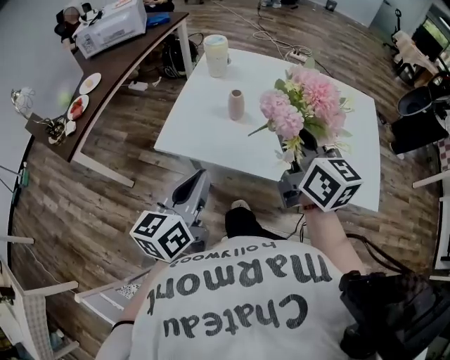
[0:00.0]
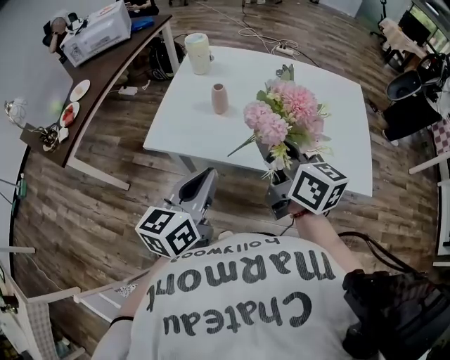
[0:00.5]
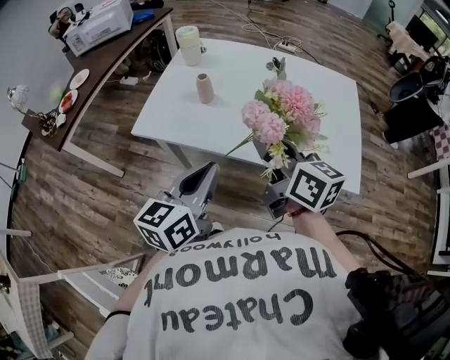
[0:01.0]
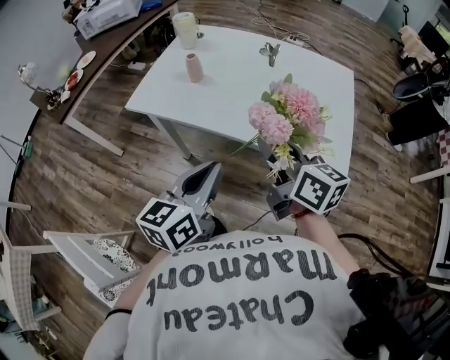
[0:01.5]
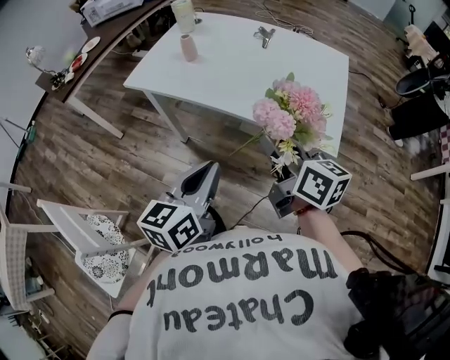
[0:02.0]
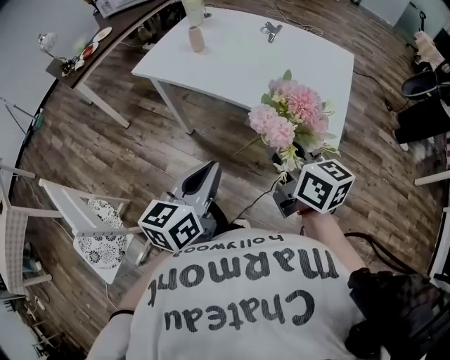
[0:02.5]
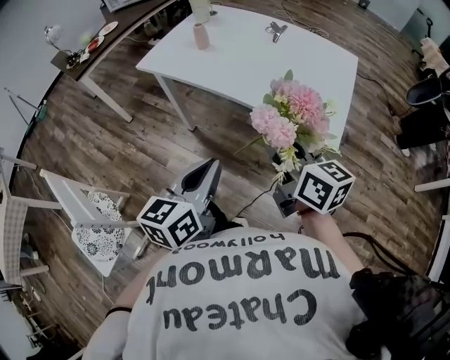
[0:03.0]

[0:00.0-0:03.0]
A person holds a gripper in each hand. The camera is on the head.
0:00.0 to 0:01.5: The left gripper goes about 25 cm to the right and backward. The right gripper travels backward, to the right and downward by approximately 25 cm.
0:01.5 to 0:03.0: The grippers both shift backward by some 10 cm.

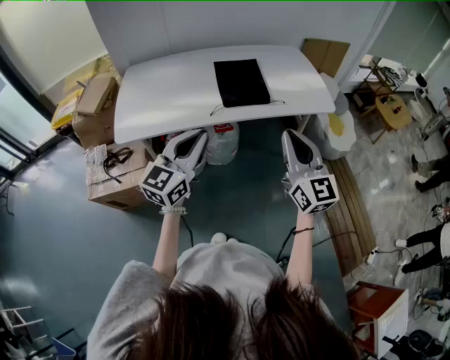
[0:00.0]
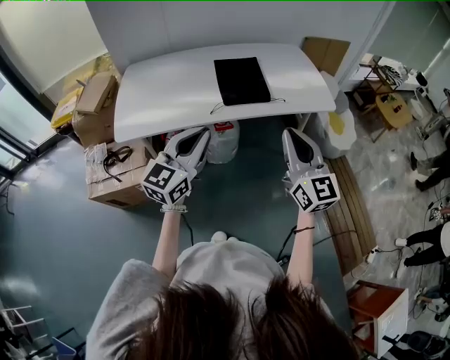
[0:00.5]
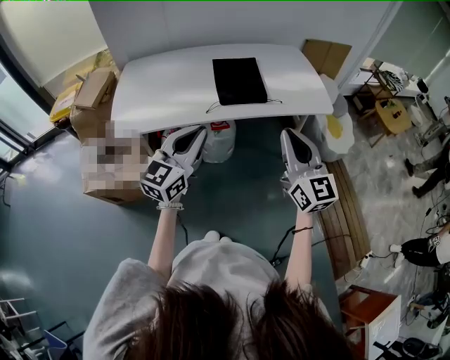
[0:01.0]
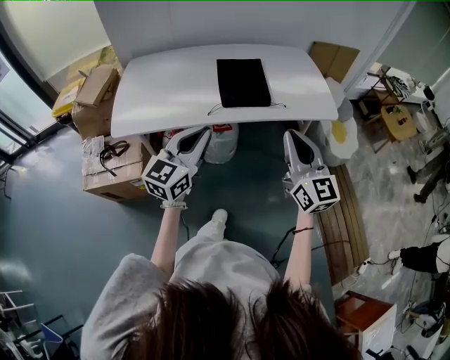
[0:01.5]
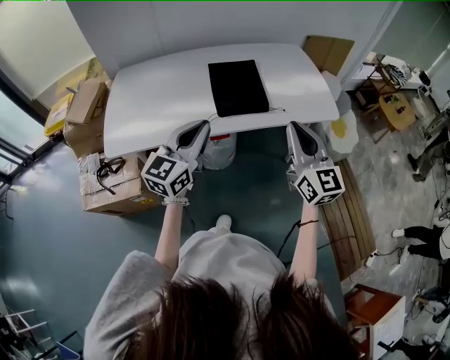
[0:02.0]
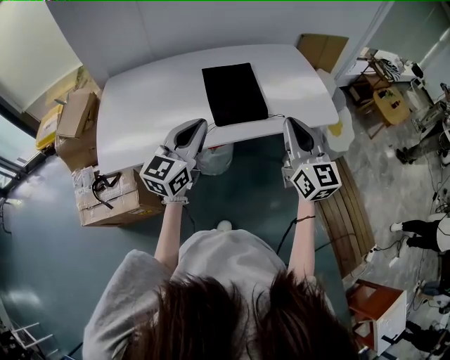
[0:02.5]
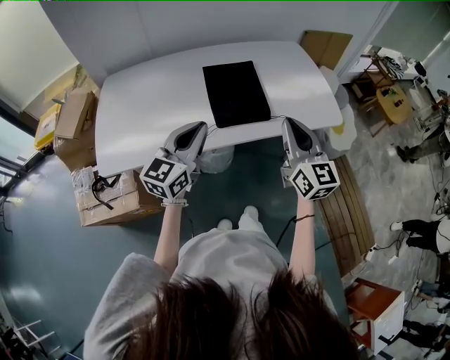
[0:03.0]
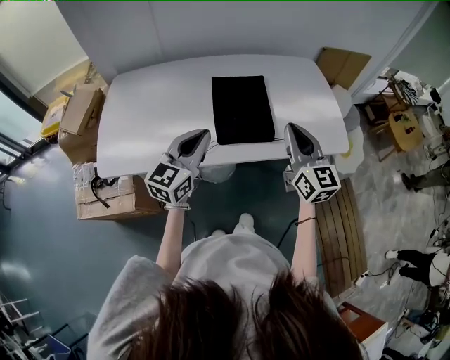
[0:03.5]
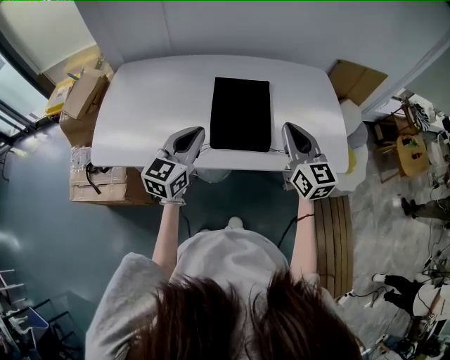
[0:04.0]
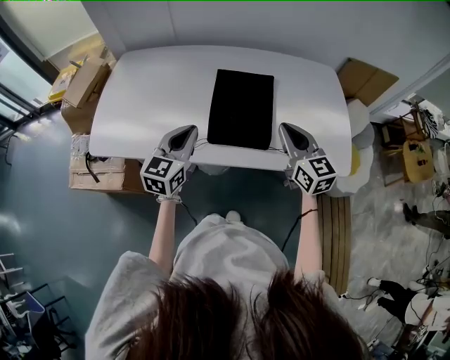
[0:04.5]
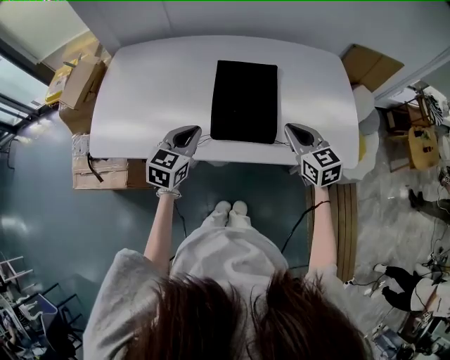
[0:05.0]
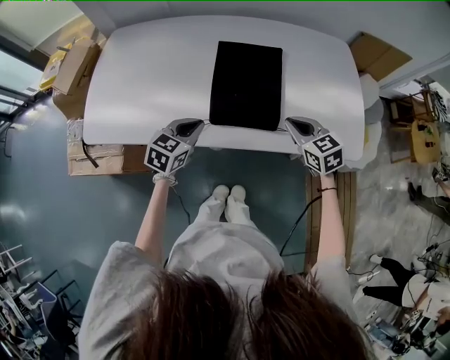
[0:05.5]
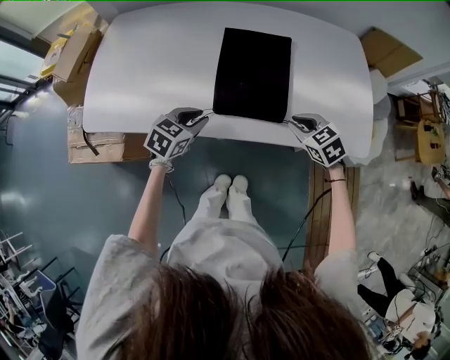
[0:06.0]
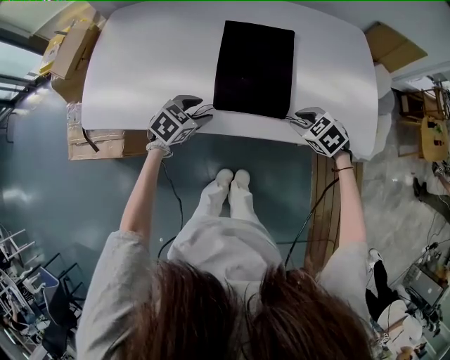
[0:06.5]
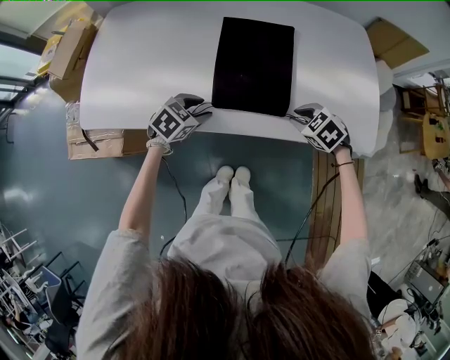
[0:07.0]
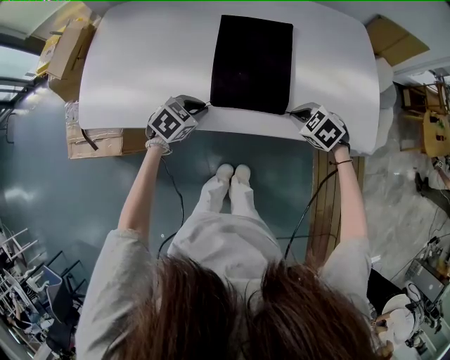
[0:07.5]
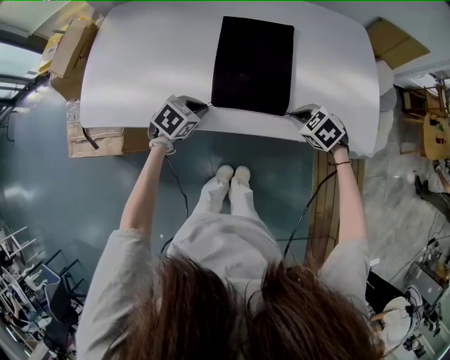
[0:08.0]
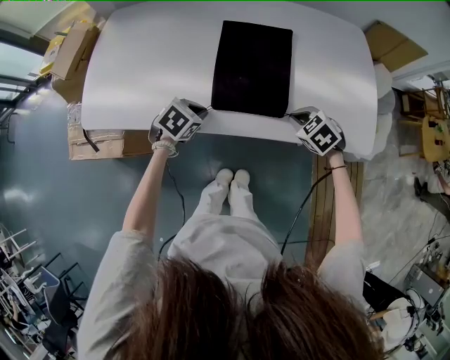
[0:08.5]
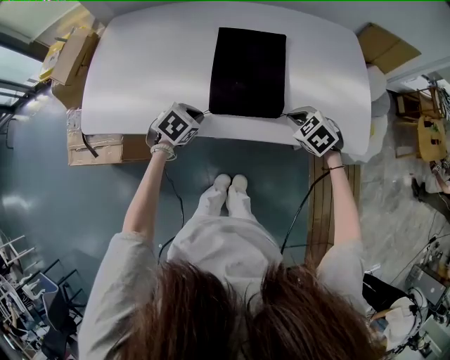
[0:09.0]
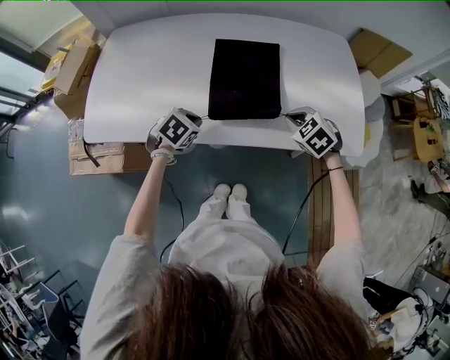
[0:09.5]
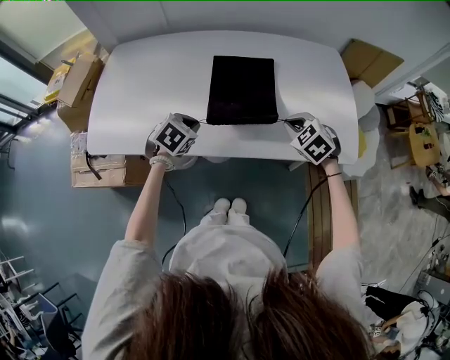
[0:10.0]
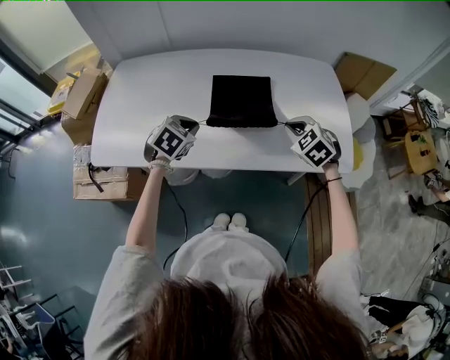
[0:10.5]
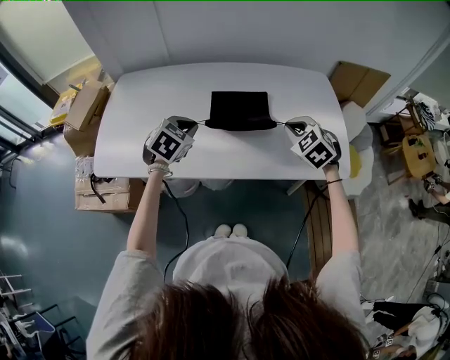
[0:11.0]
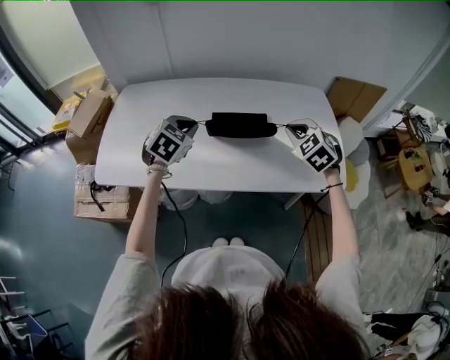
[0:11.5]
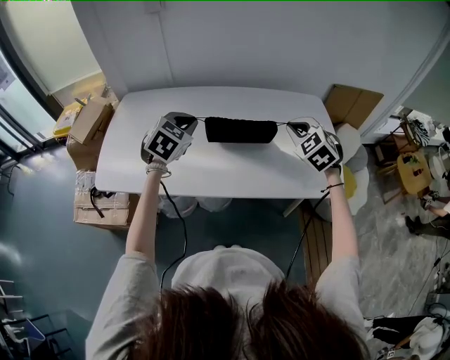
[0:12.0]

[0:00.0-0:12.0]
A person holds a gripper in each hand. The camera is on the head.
0:00.0 to 0:02.0: Both grippers move forward, approximately 10 cm.
0:02.0 to 0:04.0: Both grippers travel together forward, some 20 cm.
0:04.0 to 0:06.0: The two grippers go approximately 20 cm downward. The right gripper tilts its fingers some 50 degrees downward, while the left gripper points its fingers roughly 40 degrees further downward.
0:06.0 to 0:08.0: The left gripper goes approximately 5 cm downward, and opens, then closes again.
0:08.0 to 0:10.0: The two grippers go approximately 10 cm upward.
0:10.0 to 0:12.0: Both grippers move upward, approximately 20 cm. The right gripper swivels some 20 degrees. Meanwhile the left gripper turns by roughly 30 degrees.

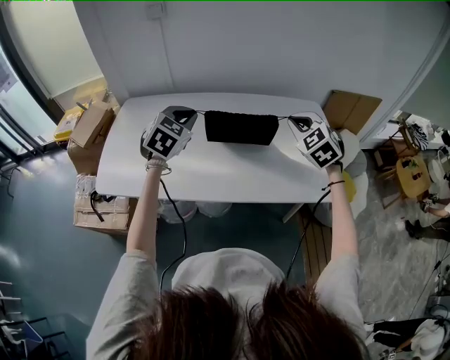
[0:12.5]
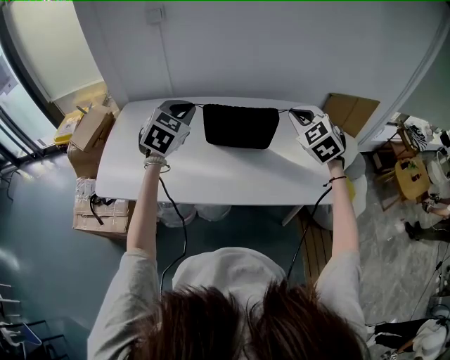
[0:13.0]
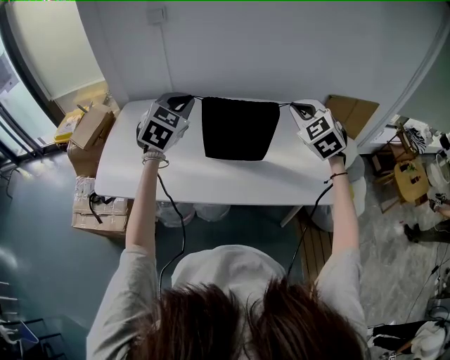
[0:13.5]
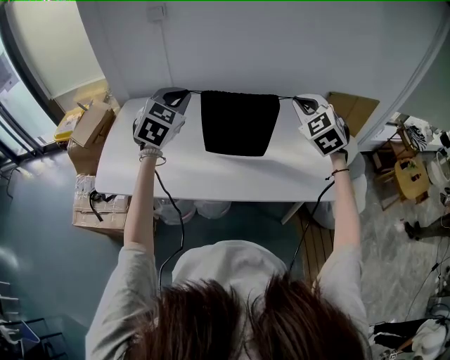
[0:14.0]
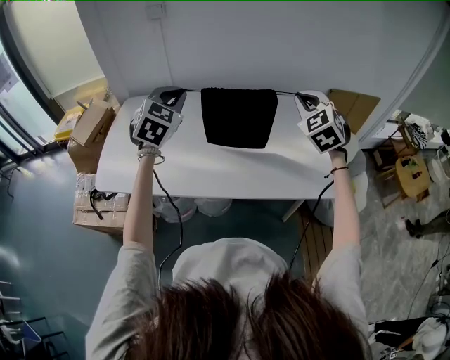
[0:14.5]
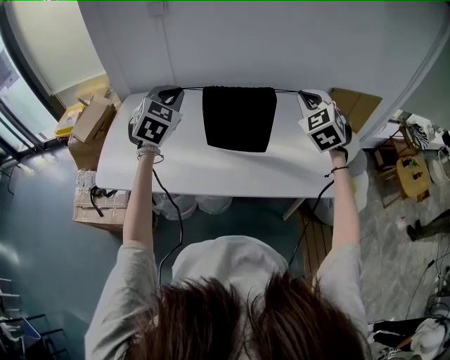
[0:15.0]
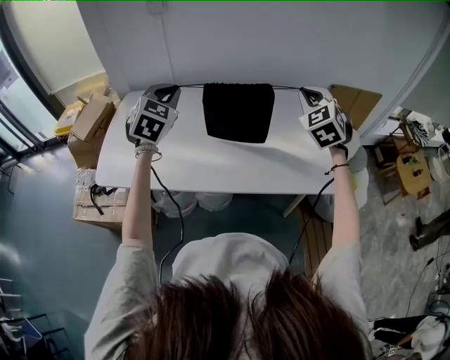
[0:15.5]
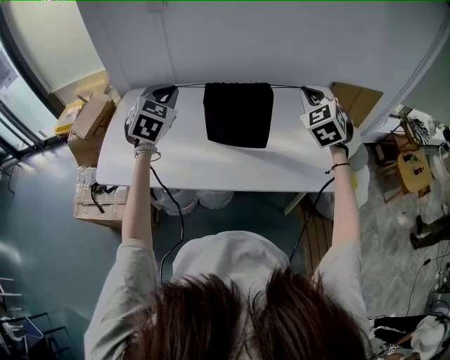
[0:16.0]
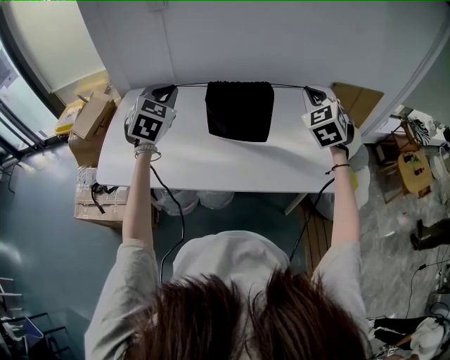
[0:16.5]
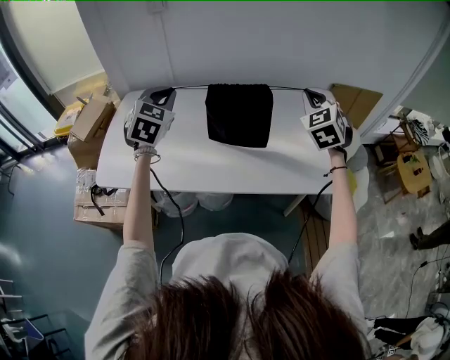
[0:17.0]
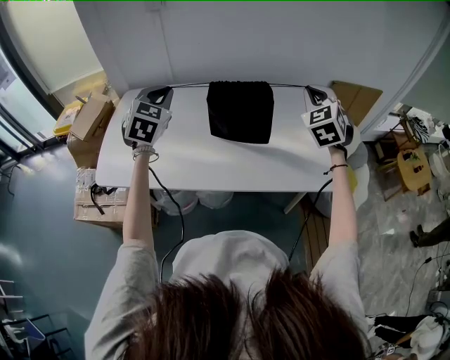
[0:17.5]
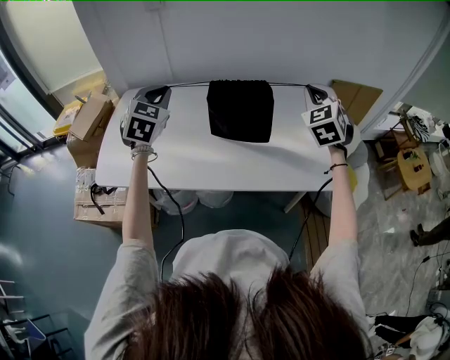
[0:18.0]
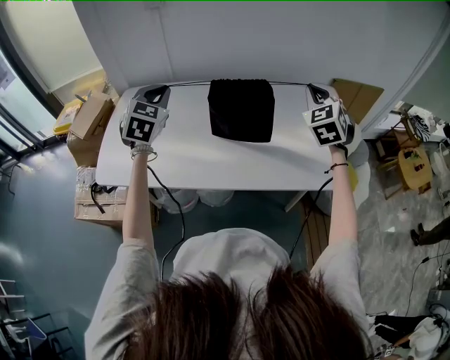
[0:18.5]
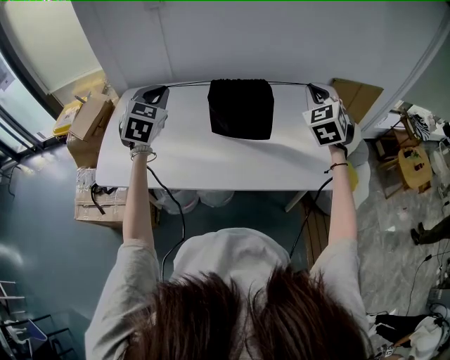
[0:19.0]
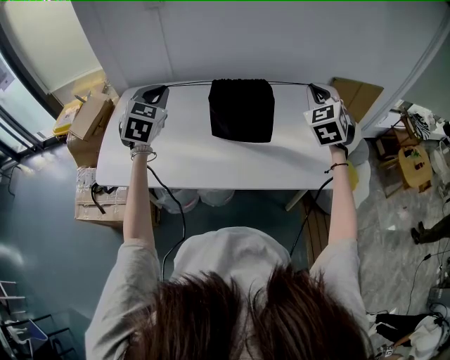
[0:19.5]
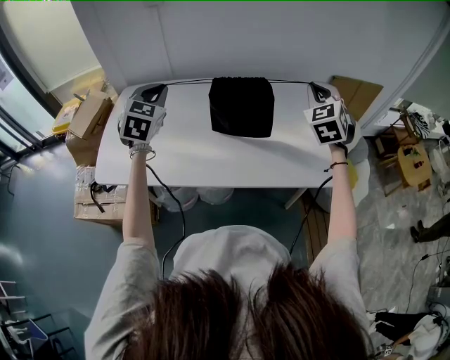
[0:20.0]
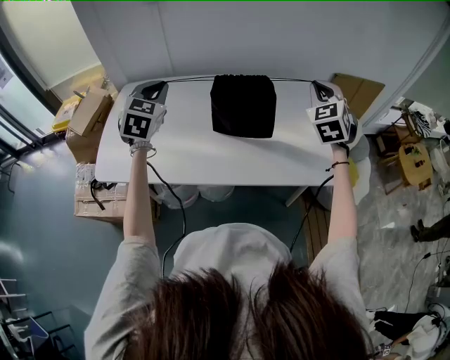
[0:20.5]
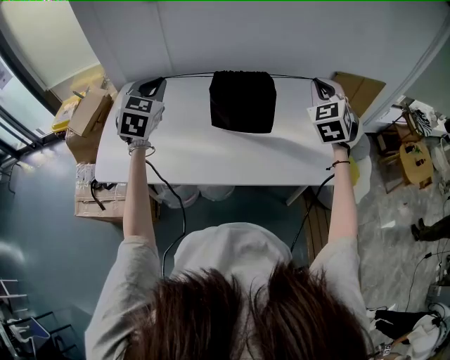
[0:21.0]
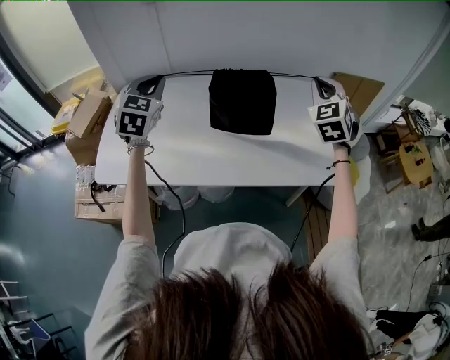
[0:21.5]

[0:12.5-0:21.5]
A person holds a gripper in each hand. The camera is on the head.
0:12.5 to 0:14.5: Both grippers travel together upward, roughly 5 cm.
0:14.5 to 0:17.0: The grippers stay close to where they were, moving slightly.
0:17.0 to 0:21.5: There are only small adjustments of the grippers.

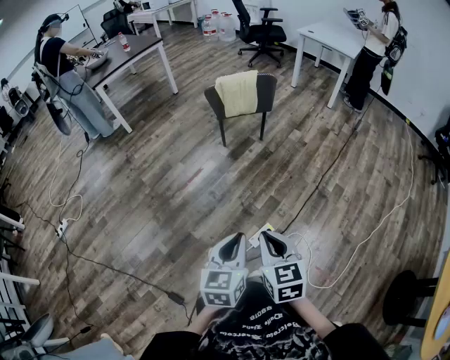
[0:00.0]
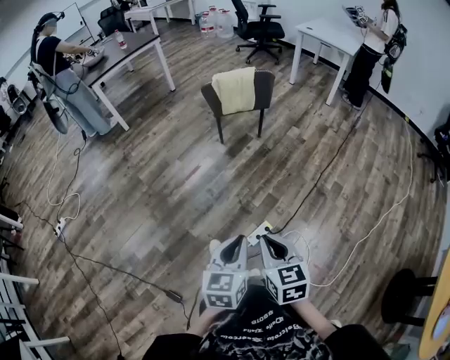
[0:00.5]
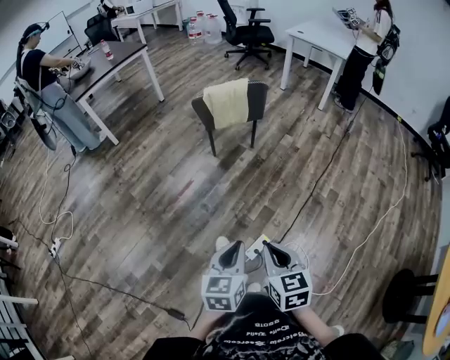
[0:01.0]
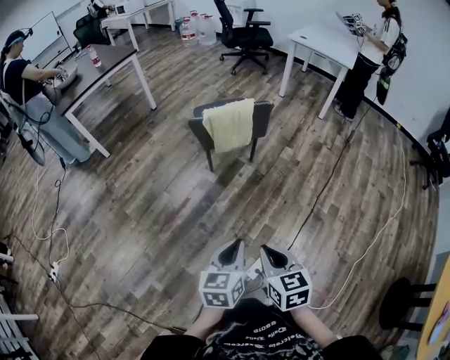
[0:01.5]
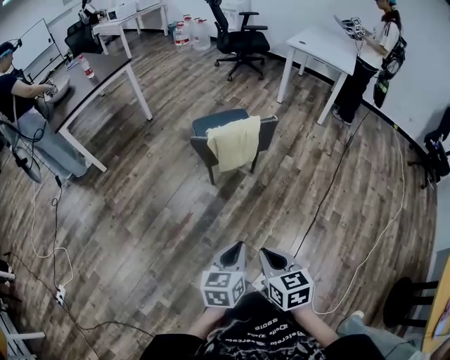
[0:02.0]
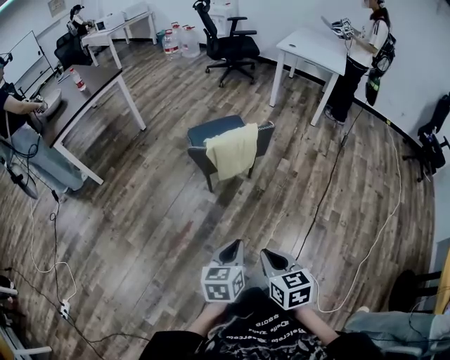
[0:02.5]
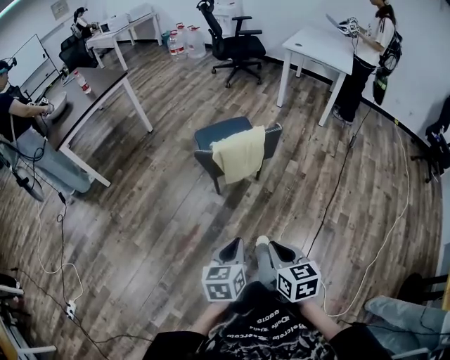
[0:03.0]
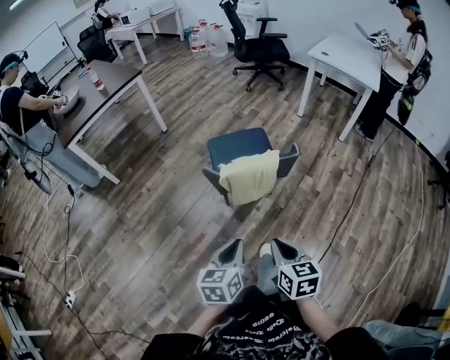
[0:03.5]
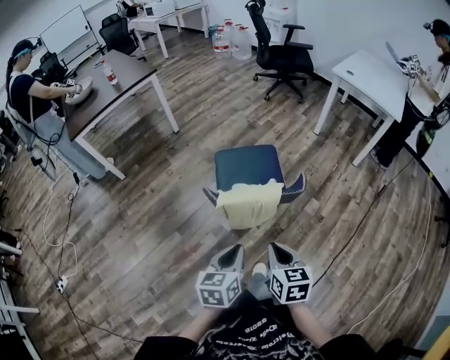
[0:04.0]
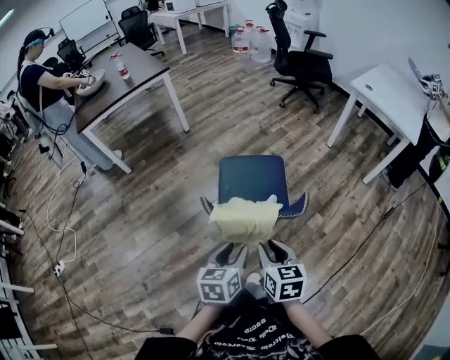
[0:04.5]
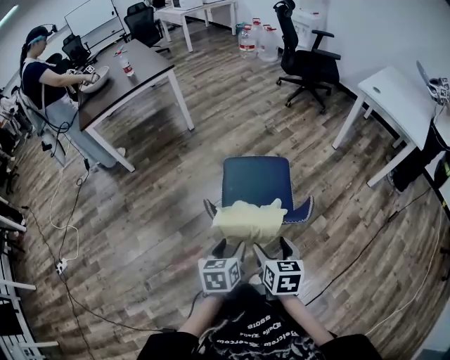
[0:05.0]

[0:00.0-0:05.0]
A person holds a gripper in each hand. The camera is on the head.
0:00.0 to 0:02.5: The two grippers go about 35 cm forward.
0:02.5 to 0:05.0: The grippers both shift forward by approximately 35 cm. The right gripper opens; the left gripper turns by about 30 degrees, and opens.
